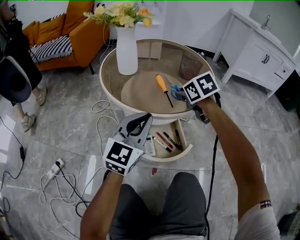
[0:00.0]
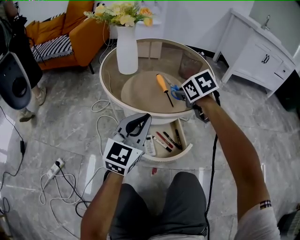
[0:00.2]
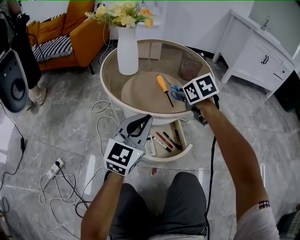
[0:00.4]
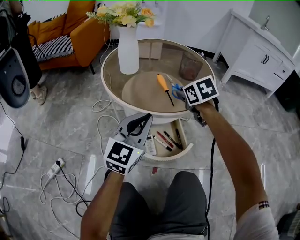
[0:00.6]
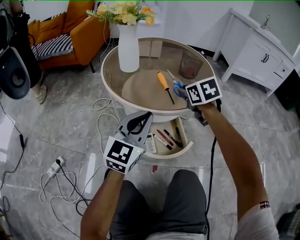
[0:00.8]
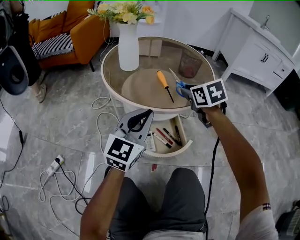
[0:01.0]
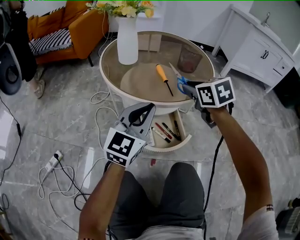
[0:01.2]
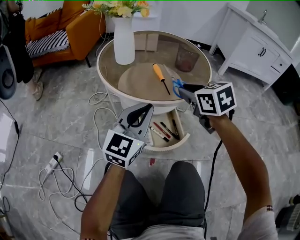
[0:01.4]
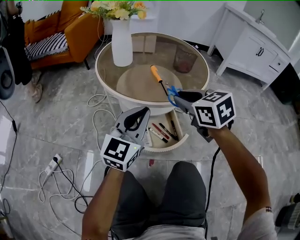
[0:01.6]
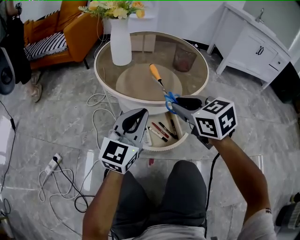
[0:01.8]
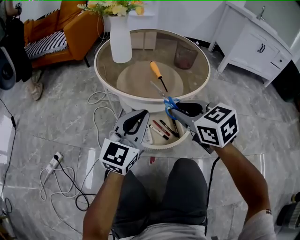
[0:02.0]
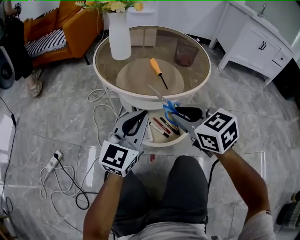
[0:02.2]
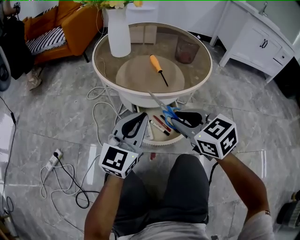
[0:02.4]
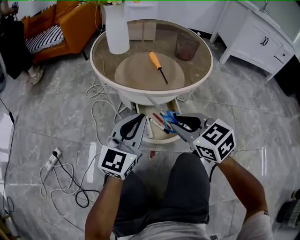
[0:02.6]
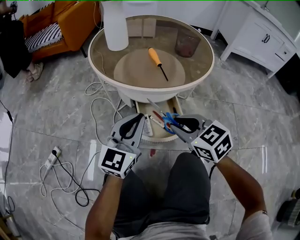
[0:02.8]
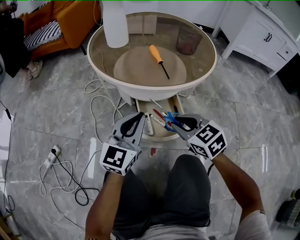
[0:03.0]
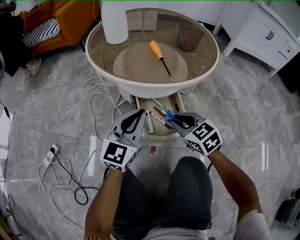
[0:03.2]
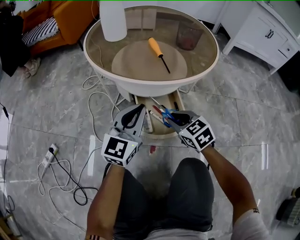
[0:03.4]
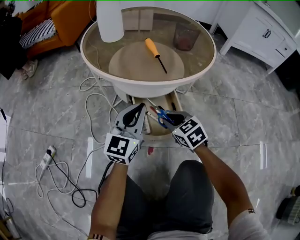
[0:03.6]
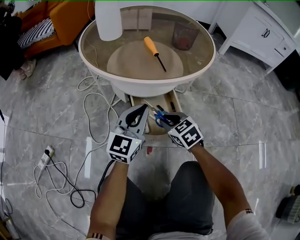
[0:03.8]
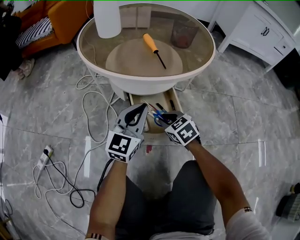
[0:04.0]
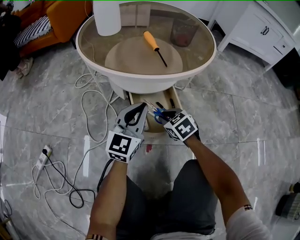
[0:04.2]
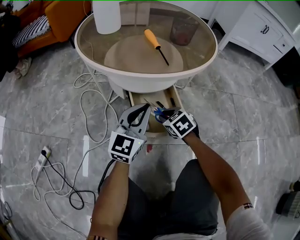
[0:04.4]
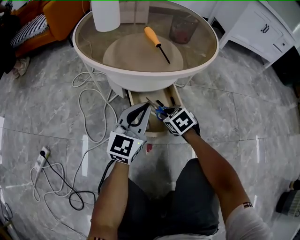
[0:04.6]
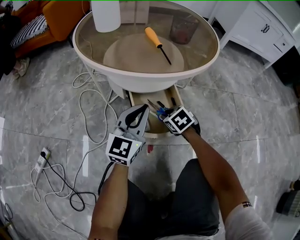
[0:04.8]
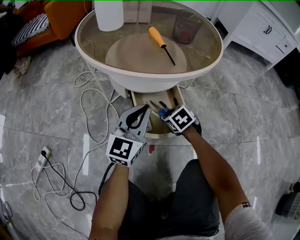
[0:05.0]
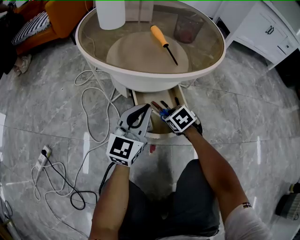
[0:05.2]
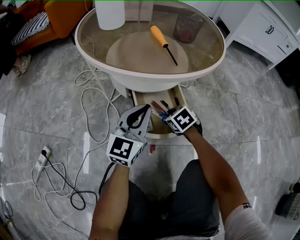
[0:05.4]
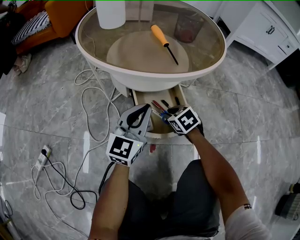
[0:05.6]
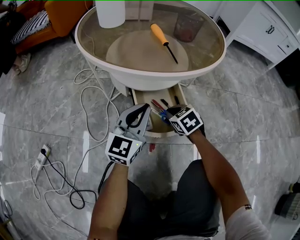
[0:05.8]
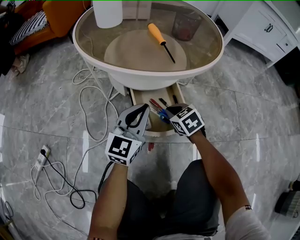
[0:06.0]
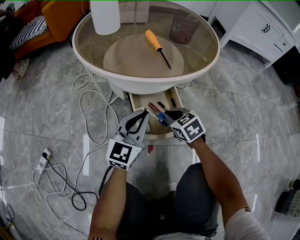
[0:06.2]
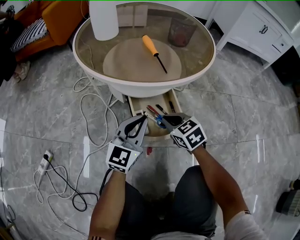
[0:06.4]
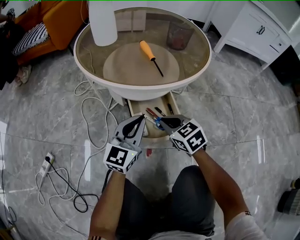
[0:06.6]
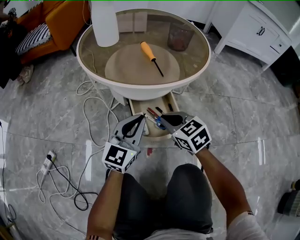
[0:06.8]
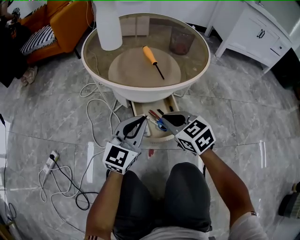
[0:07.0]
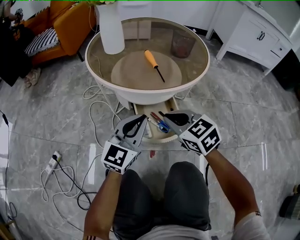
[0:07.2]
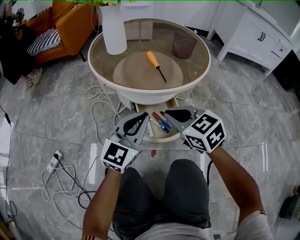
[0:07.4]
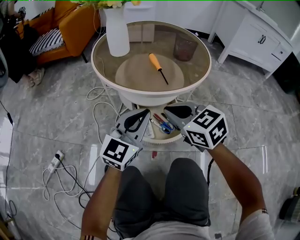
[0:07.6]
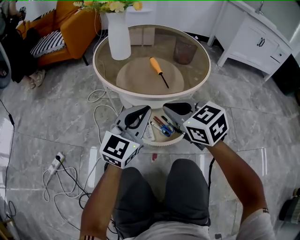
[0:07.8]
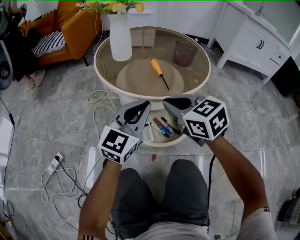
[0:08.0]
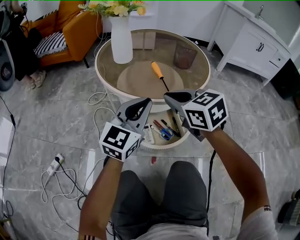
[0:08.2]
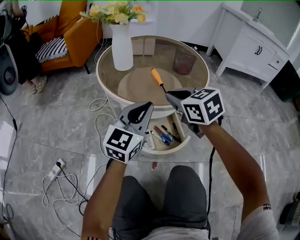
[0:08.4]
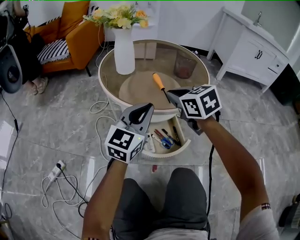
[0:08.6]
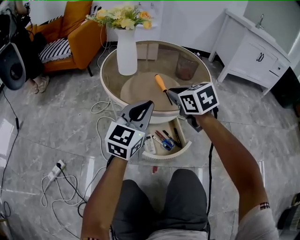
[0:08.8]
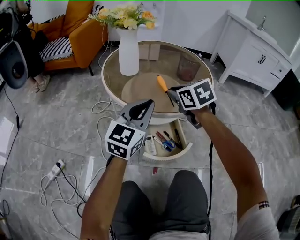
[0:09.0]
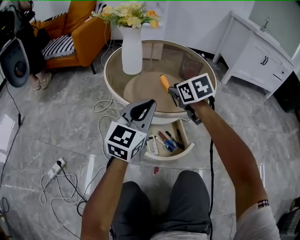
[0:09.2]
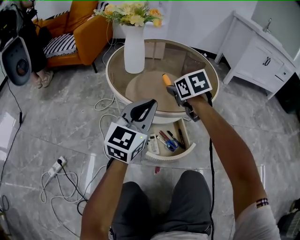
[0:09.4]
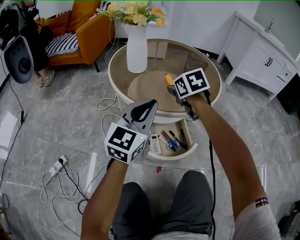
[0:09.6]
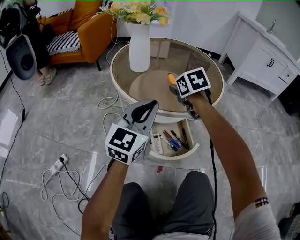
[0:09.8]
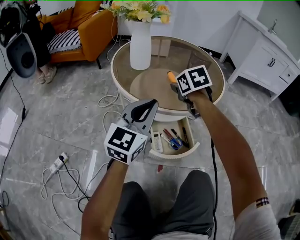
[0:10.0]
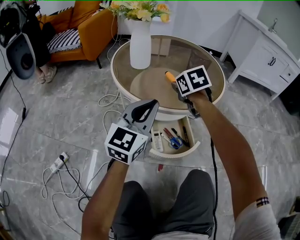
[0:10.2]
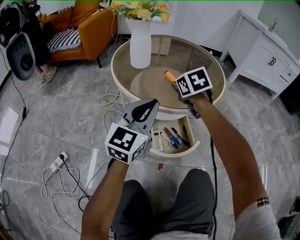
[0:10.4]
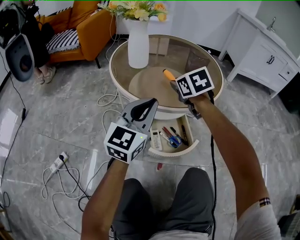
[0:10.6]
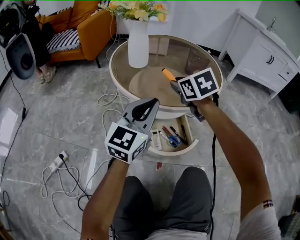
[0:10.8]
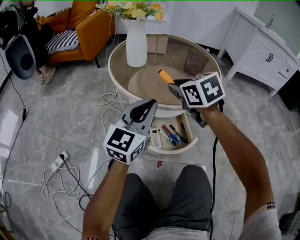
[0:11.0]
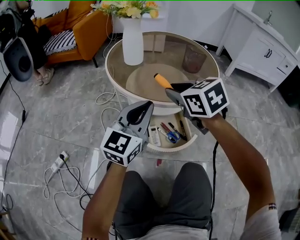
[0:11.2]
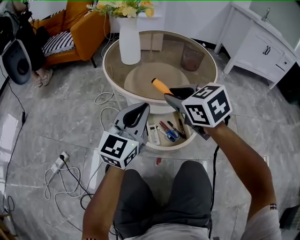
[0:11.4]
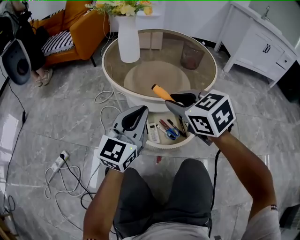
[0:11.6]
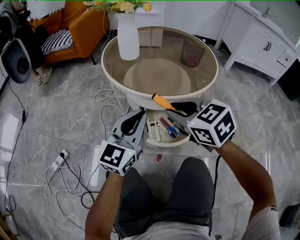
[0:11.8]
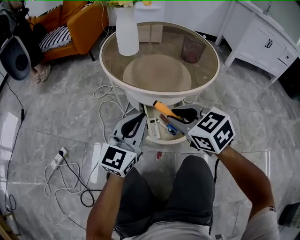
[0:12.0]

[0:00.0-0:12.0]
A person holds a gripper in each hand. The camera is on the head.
0:00.0 to 0:01.6: The right gripper goes approximately 15 cm backward and upward.
0:01.6 to 0:03.0: The left gripper goes roughly 10 cm downward, while the right gripper travels downward and backward by about 15 cm.
0:03.0 to 0:04.4: The right gripper shifts about 20 cm downward; the left gripper travels downward by about 10 cm.
0:04.4 to 0:06.0: The grippers make only small movements.
0:06.0 to 0:07.6: The left gripper is displaced upward by roughly 15 cm. Meanwhile the right gripper goes some 25 cm upward, and turns by roughly 20 degrees.
0:07.6 to 0:09.0: The left gripper heads forward and upward, covering approximately 10 cm. Meanwhile the right gripper travels forward by approximately 15 cm.
0:09.0 to 0:10.4: The right gripper changes place by some 5 cm.
0:10.4 to 0:12.0: The right gripper goes about 20 cm backward, and changes its angle by roughly 20 degrees. Meanwhile the left gripper goes approximately 10 cm backward and downward.

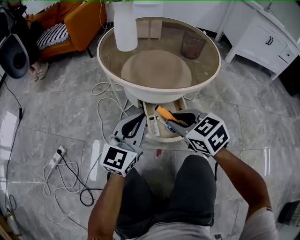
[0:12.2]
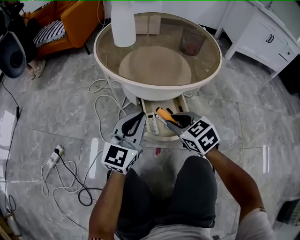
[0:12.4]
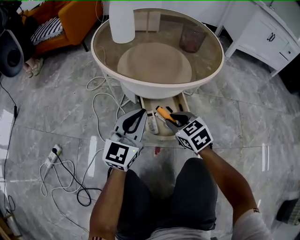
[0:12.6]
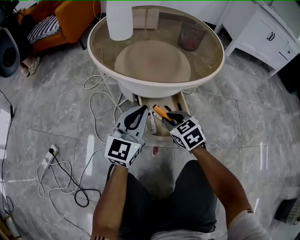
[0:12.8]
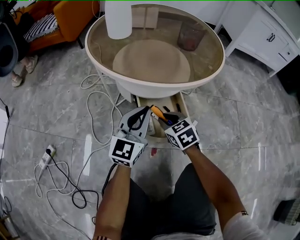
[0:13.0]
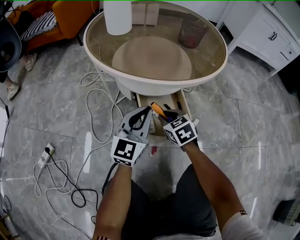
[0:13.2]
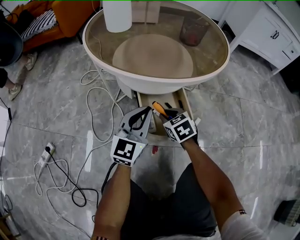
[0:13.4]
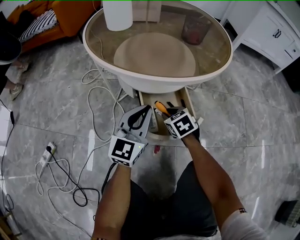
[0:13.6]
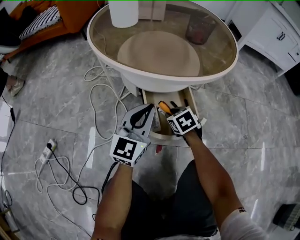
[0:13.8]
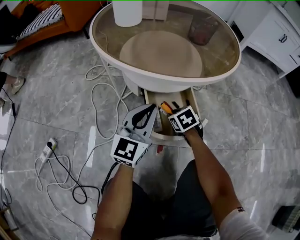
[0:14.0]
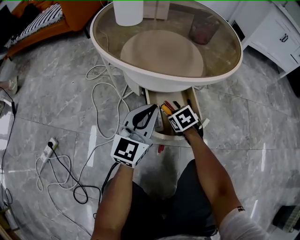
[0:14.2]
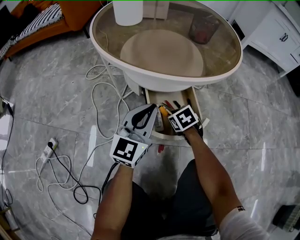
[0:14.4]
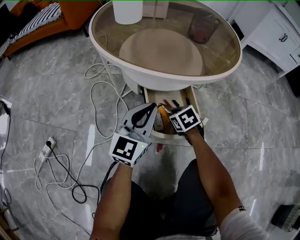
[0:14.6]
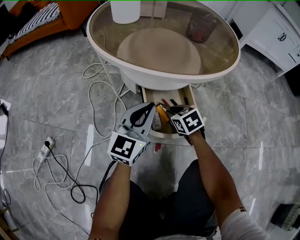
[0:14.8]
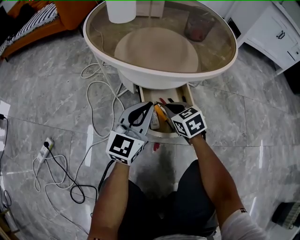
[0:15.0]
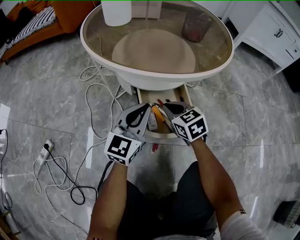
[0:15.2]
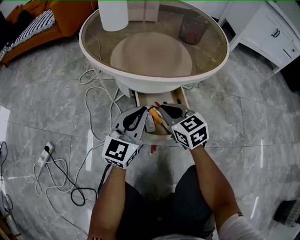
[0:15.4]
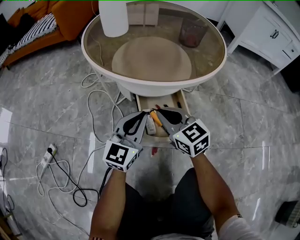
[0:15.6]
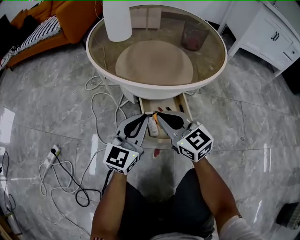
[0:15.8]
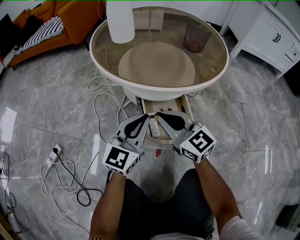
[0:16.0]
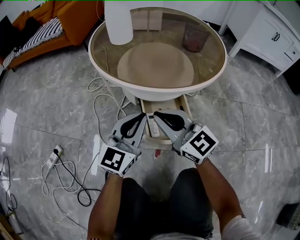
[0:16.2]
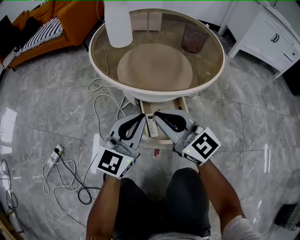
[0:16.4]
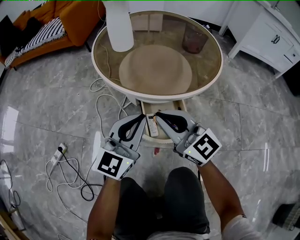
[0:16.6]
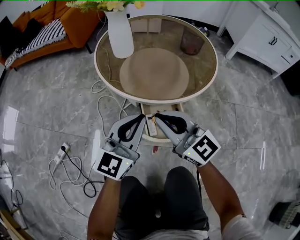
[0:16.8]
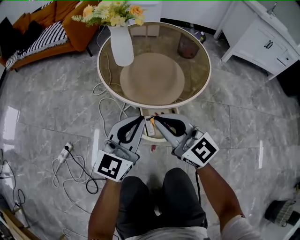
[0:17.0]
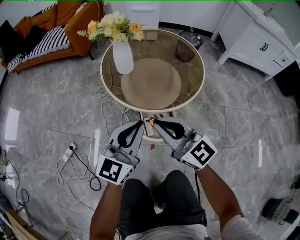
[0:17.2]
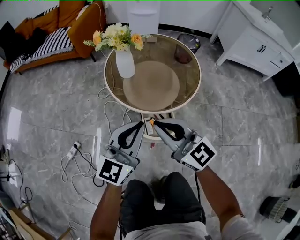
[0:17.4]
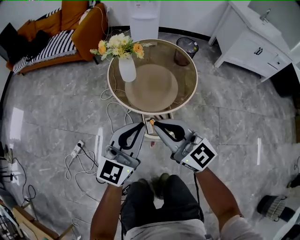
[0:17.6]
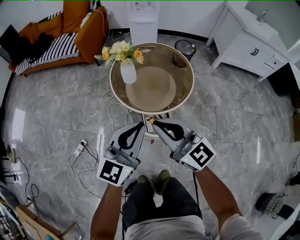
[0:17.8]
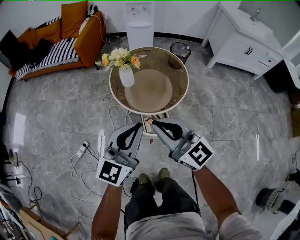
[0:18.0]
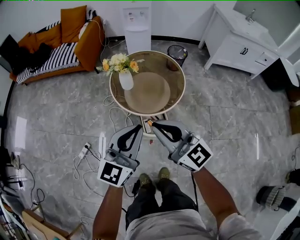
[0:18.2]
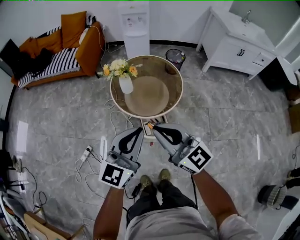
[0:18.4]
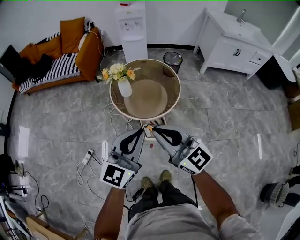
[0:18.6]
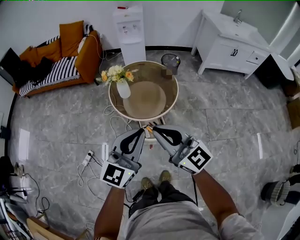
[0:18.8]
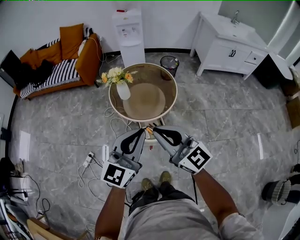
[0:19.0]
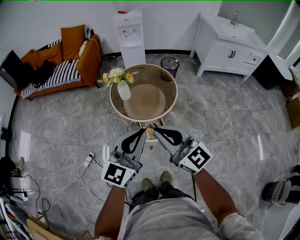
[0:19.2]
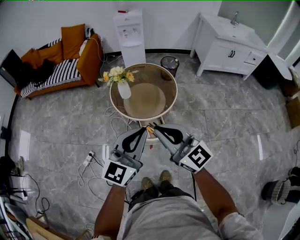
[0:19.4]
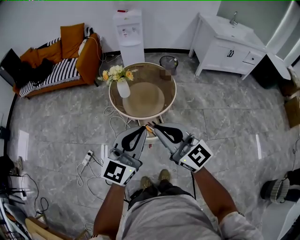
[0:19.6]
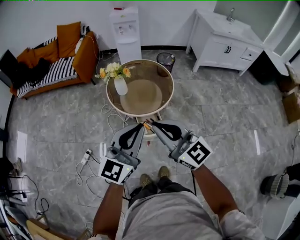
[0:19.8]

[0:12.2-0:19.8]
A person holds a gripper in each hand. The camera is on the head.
0:12.2 to 0:13.8: The right gripper travels downward by roughly 25 cm, and changes its angle by approximately 20 degrees. Meanwhile the left gripper heads downward and forward, covering some 10 cm.
0:13.8 to 0:15.2: The right gripper moves upward, about 10 cm, and changes its angle by approximately 20 degrees.
0:15.2 to 0:16.8: Both grippers travel together upward, some 25 cm. The right gripper points its fingers some 40 degrees further upward.
0:16.8 to 0:18.2: Both grippers travel together upward, some 40 cm.
0:18.2 to 0:19.8: The right gripper heads backward and upward, covering about 10 cm; the left gripper shifts roughly 10 cm upward and backward.

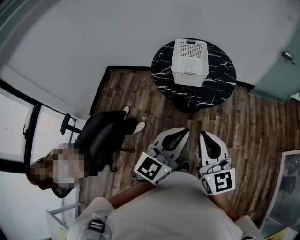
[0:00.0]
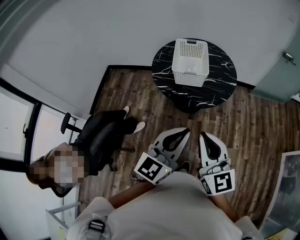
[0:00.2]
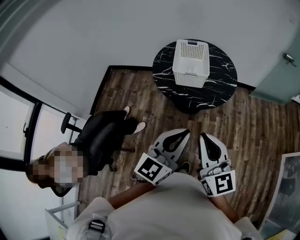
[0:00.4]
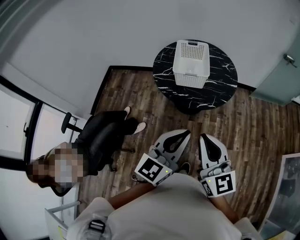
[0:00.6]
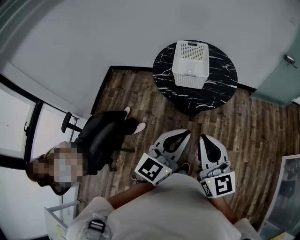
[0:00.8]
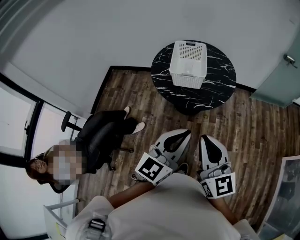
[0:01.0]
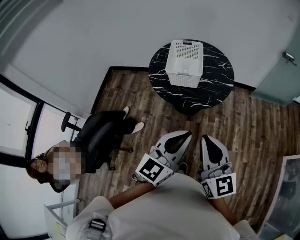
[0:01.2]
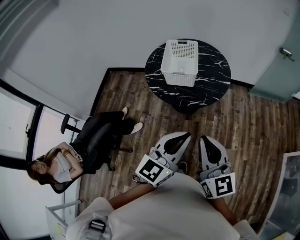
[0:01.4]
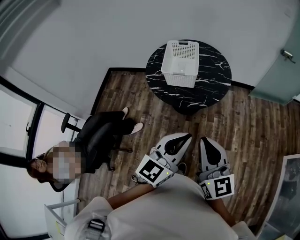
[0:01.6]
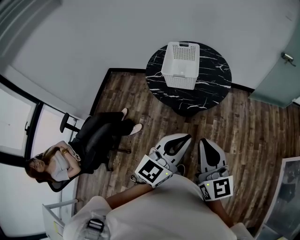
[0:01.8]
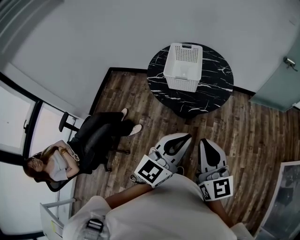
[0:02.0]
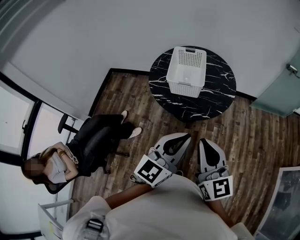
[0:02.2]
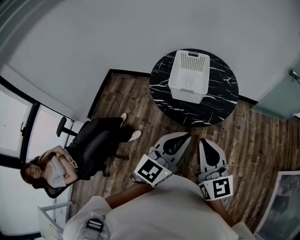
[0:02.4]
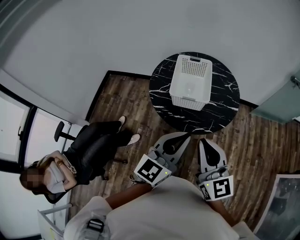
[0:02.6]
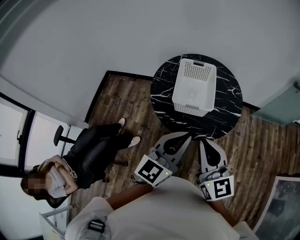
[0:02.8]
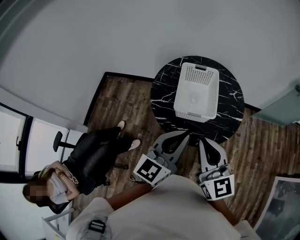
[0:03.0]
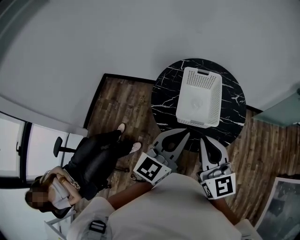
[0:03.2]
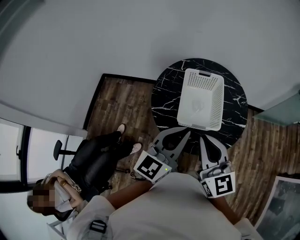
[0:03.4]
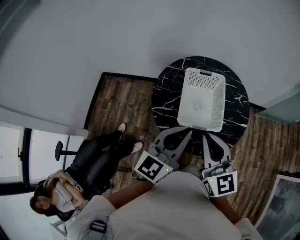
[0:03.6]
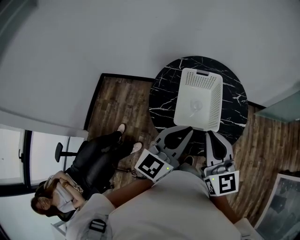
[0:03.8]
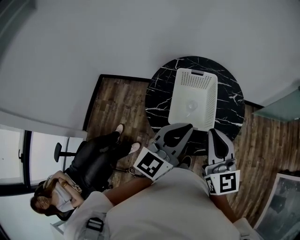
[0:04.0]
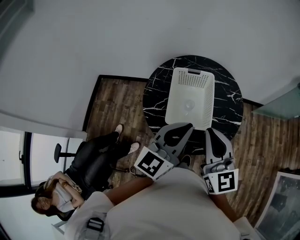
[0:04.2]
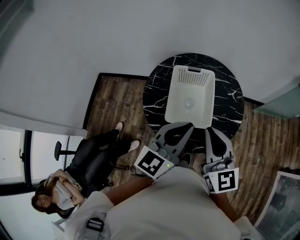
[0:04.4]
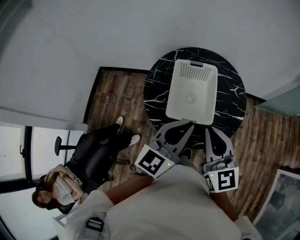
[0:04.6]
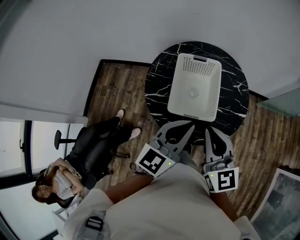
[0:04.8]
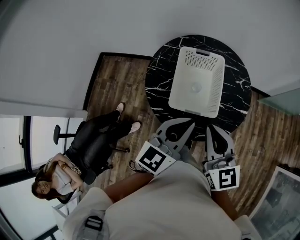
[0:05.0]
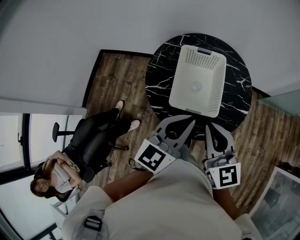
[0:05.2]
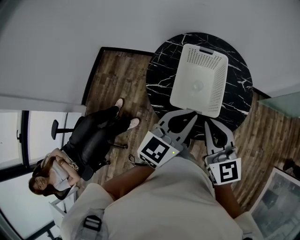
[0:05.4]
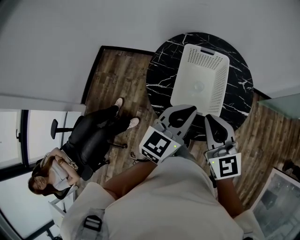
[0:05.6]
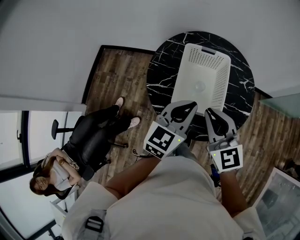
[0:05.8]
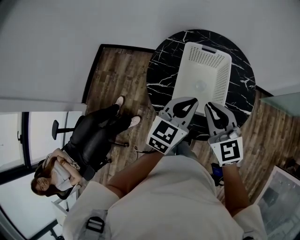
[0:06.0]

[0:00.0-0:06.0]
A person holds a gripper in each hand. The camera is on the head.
0:00.0 to 0:01.6: The grippers both shift to the right by roughly 10 cm.
0:01.6 to 0:03.0: The two grippers go about 30 cm forward and to the left.
0:03.0 to 0:04.4: The grippers both shift forward by roughly 15 cm.
0:04.4 to 0:06.0: The two grippers go some 15 cm downward and forward. The right gripper changes its angle by approximately 20 degrees.
